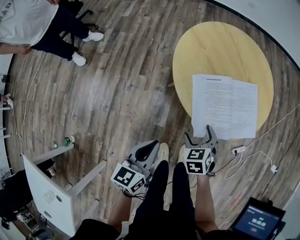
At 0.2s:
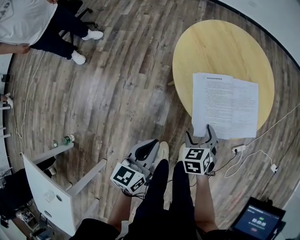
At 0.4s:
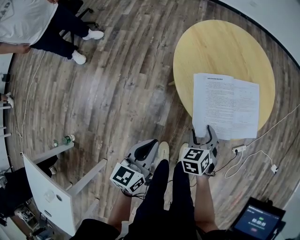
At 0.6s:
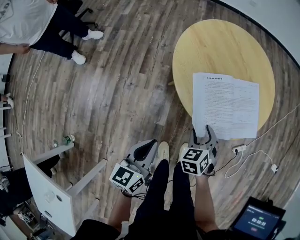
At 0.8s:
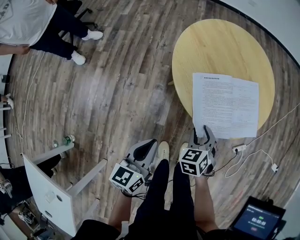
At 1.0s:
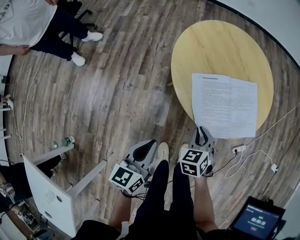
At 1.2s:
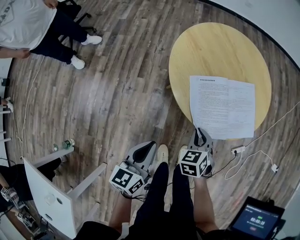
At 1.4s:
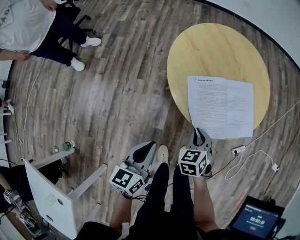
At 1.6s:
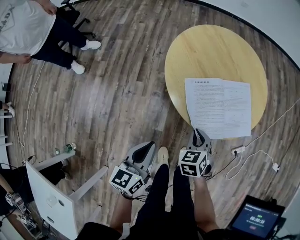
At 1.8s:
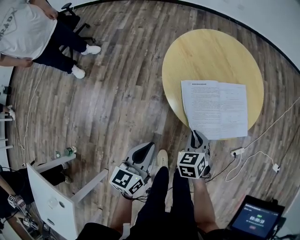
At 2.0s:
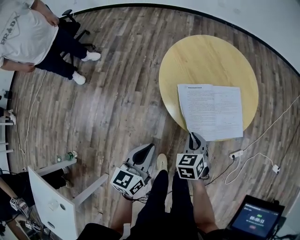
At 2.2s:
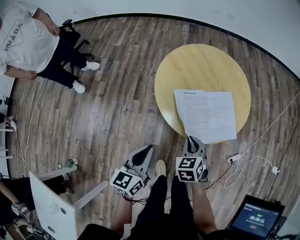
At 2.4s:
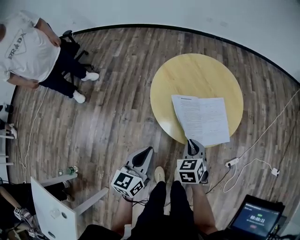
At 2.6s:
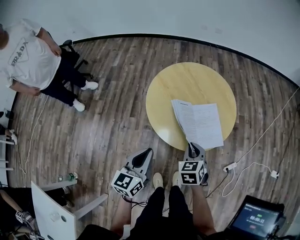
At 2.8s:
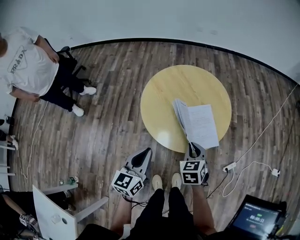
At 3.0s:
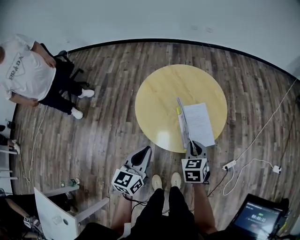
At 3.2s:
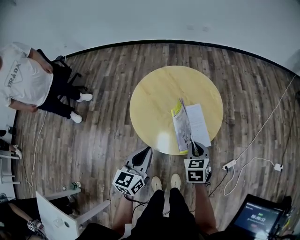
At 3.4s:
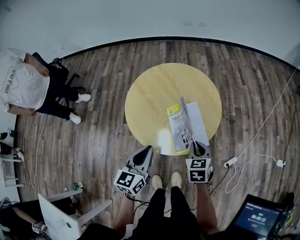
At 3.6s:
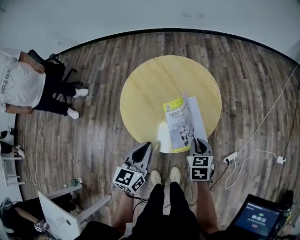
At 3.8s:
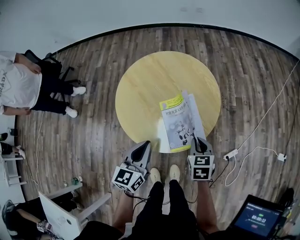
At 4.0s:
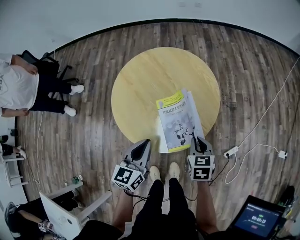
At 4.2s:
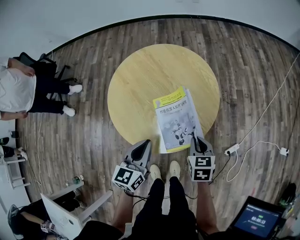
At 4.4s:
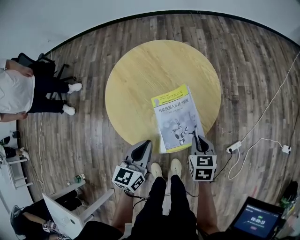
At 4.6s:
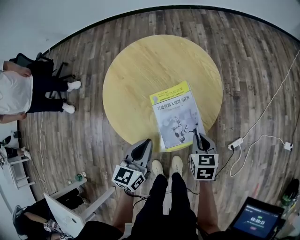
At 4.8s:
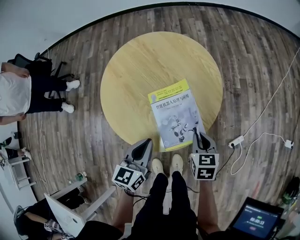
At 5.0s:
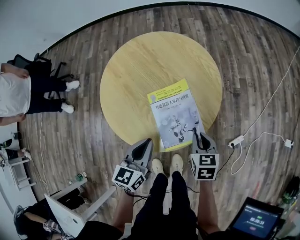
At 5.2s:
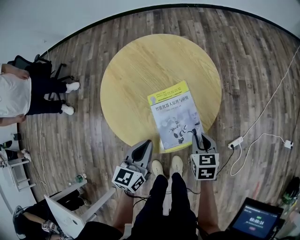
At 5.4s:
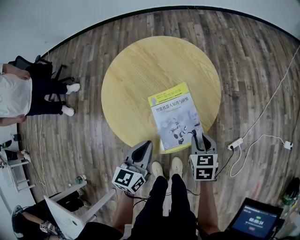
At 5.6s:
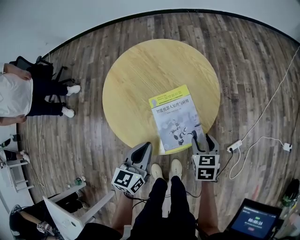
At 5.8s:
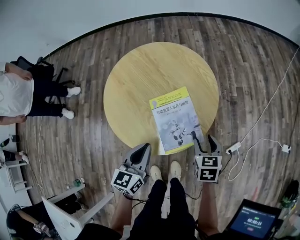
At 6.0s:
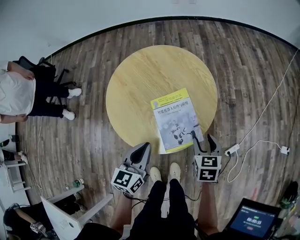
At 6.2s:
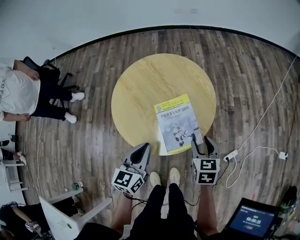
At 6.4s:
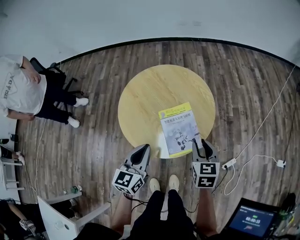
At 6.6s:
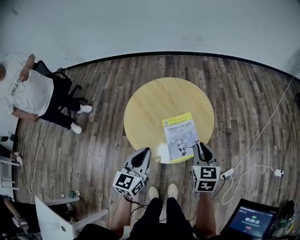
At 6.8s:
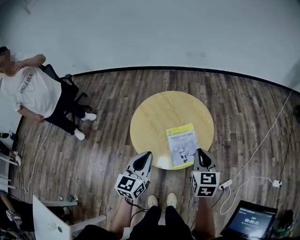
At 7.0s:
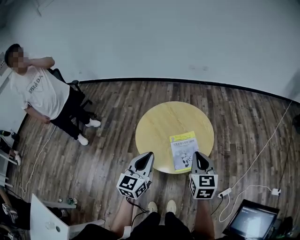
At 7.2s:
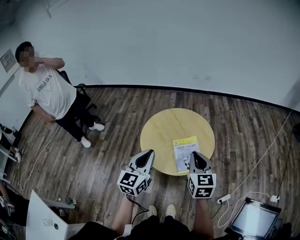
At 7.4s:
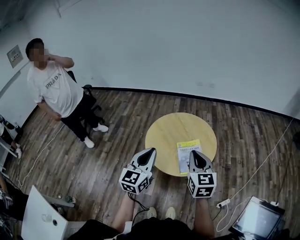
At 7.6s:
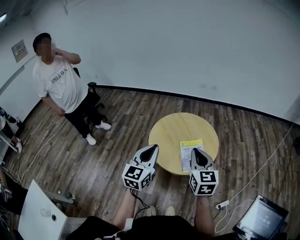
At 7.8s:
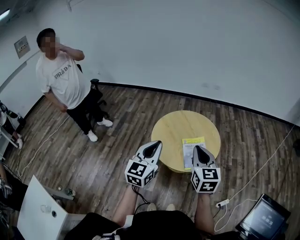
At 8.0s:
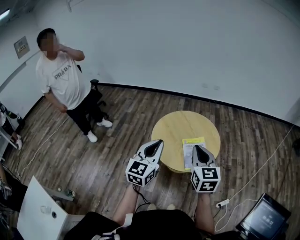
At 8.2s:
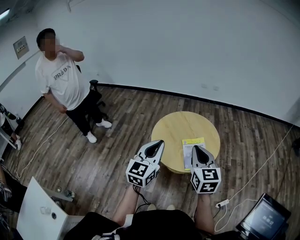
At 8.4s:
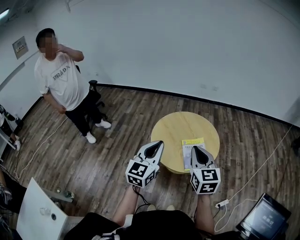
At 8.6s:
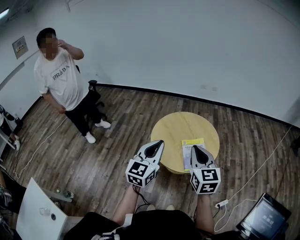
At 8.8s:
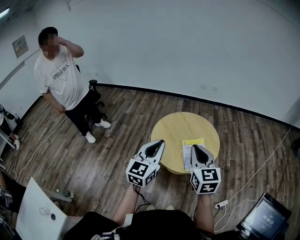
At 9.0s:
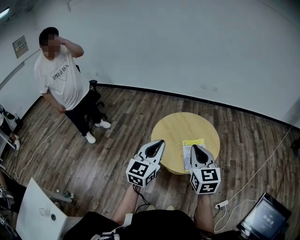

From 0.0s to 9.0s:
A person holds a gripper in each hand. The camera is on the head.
From 0.0s to 1.6s: The right gripper closes up.
From 1.6s to 3.0s: The left gripper heads upward, to the right and forward, covering approximately 20 cm, while the right gripper shifts approximately 20 cm upward and to the right.
From 3.0s to 4.4s: The left gripper heads to the right, downward and forward, covering approximately 15 cm; the right gripper shifts about 15 cm to the right and downward.
From 4.4s to 6.0s: The right gripper opens.
From 6.0s to 7.6s: The left gripper moves upward, approximately 25 cm, and changes its angle by roughly 30 degrees. Meanwhile the right gripper shifts about 40 cm upward and to the left, points its fingers some 40 degrees further upward, and closes.
From 7.6s to 9.0s: The grippers move only a little.

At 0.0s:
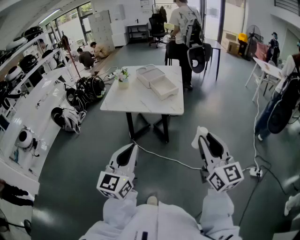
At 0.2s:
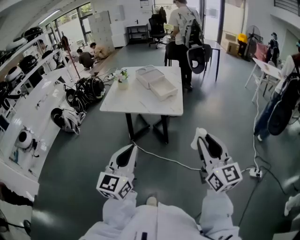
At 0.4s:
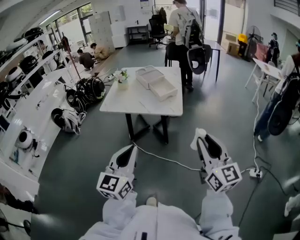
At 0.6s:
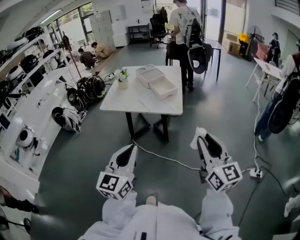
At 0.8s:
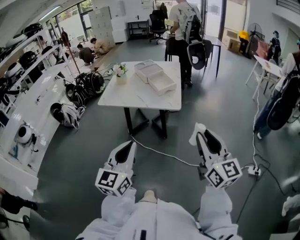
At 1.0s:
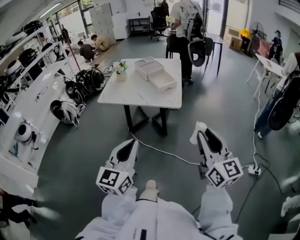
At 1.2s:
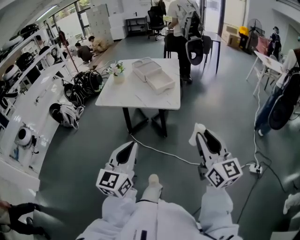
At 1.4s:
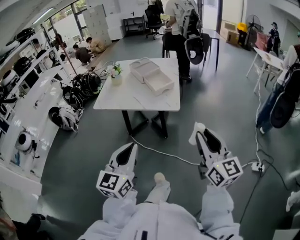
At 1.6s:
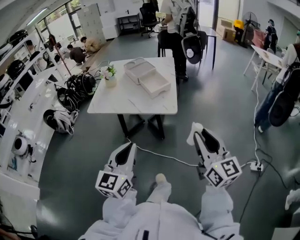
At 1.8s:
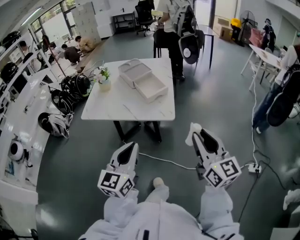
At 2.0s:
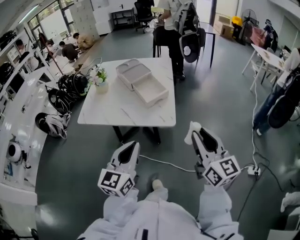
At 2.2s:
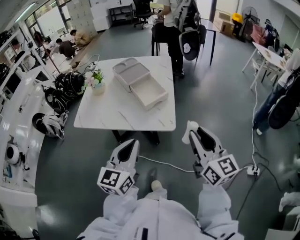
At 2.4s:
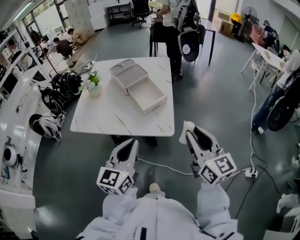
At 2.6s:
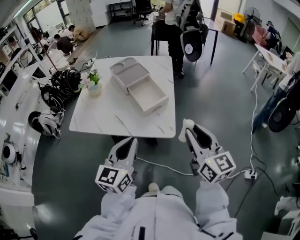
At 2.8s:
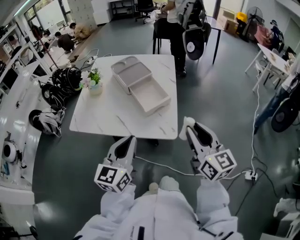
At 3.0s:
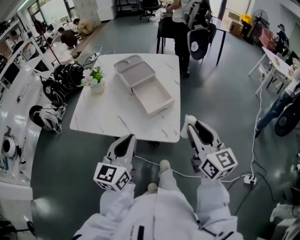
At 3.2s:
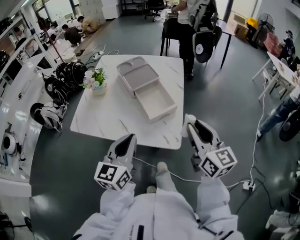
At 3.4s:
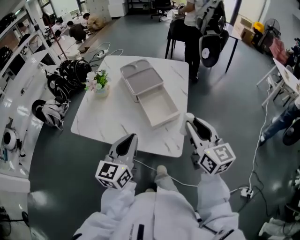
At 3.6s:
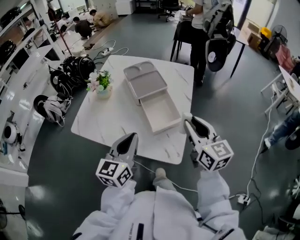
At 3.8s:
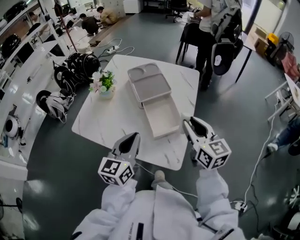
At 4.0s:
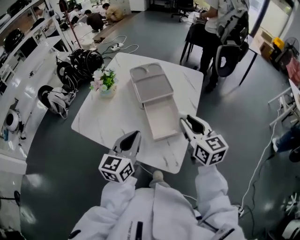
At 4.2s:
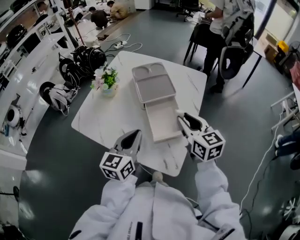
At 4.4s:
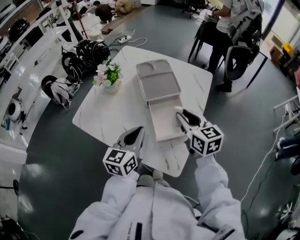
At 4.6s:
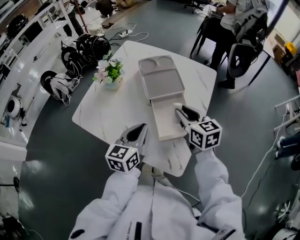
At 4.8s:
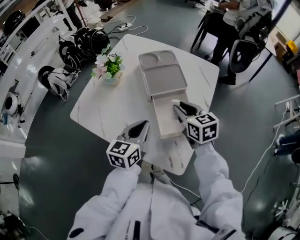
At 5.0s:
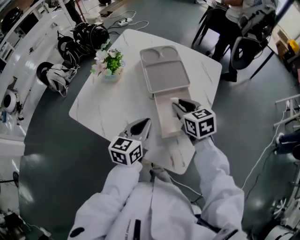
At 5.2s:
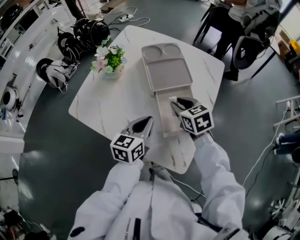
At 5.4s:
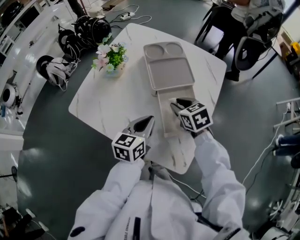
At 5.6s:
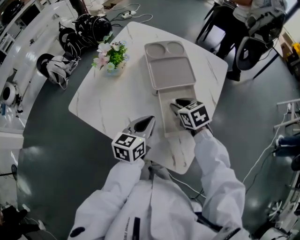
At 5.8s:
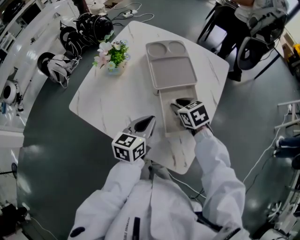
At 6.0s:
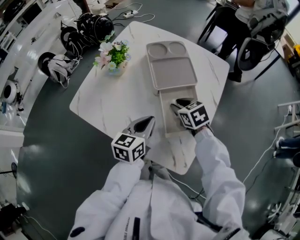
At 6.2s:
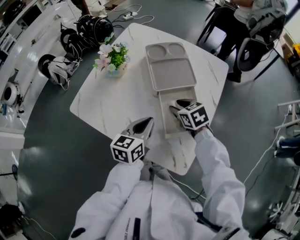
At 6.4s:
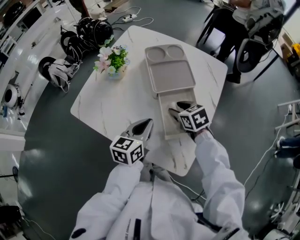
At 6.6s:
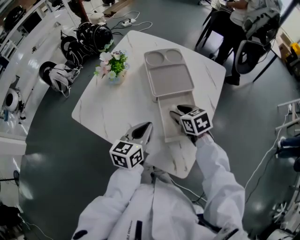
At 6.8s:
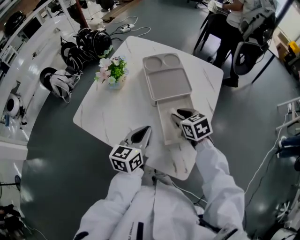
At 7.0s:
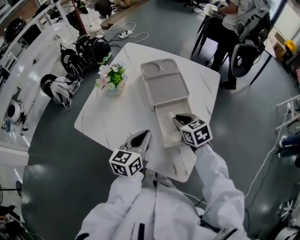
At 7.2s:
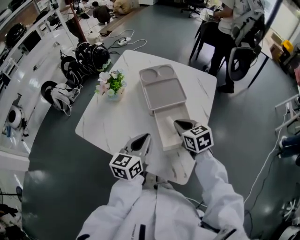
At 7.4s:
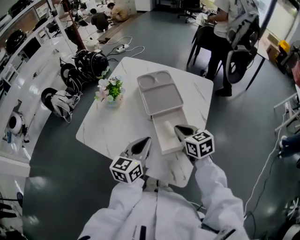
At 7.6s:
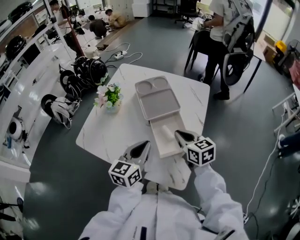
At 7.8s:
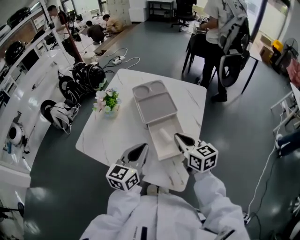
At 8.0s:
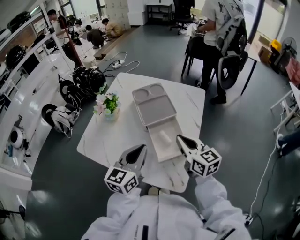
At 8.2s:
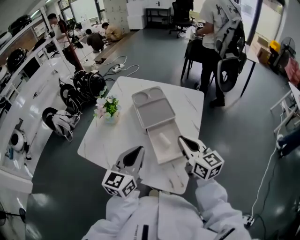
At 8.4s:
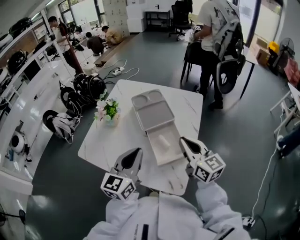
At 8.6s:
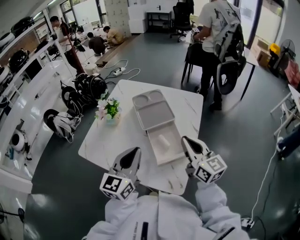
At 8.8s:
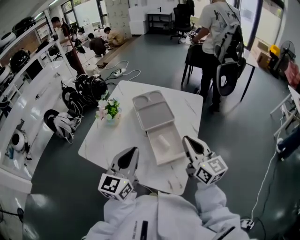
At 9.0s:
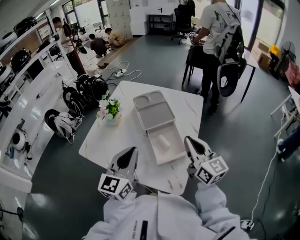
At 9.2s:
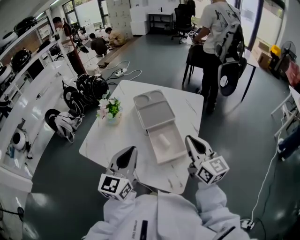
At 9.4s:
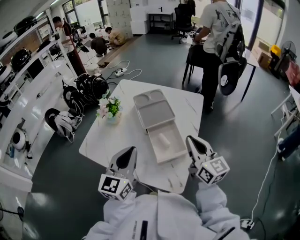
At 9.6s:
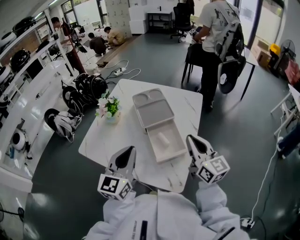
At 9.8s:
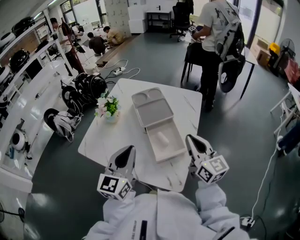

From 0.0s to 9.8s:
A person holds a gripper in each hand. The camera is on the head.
From 0.0s to 1.4s: Both grippers travel together forward, some 5 cm.
From 1.4s to 2.8s: The two grippers go approximately 30 cm forward.
From 2.8s to 4.2s: Both grippers travel together forward, approximately 25 cm. The right gripper changes its angle by about 30 degrees.
From 4.2s to 5.6s: The right gripper is displaced downward, forward and to the left by approximately 20 cm, and tips its fingers downward by about 30 degrees. The left gripper is displaced downward and forward by some 10 cm.
From 5.6s to 7.0s: The grippers stay close to where they were, moving slightly.
From 7.0s to 8.4s: The left gripper shifts approximately 15 cm upward, and changes its angle by roughly 20 degrees, while the right gripper shifts roughly 20 cm upward and backward, and points its fingers approximately 40 degrees further upward.
From 8.4s to 9.8s: The grippers move only a little.

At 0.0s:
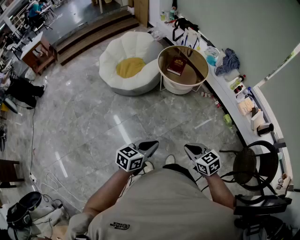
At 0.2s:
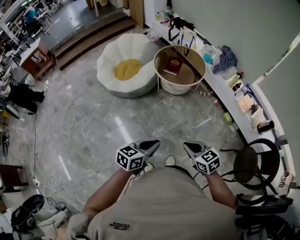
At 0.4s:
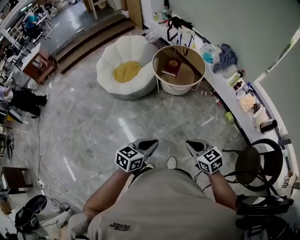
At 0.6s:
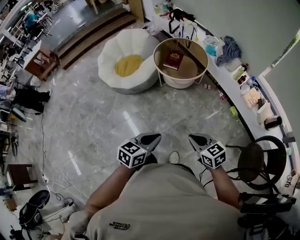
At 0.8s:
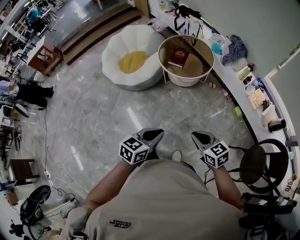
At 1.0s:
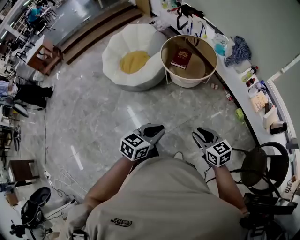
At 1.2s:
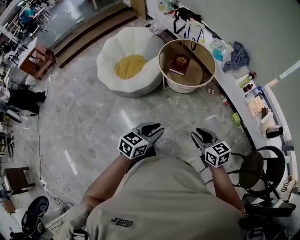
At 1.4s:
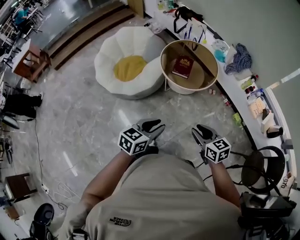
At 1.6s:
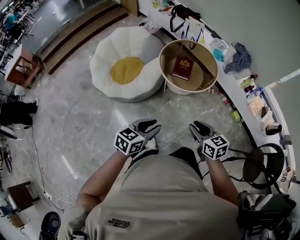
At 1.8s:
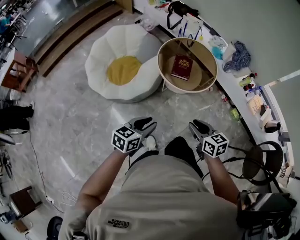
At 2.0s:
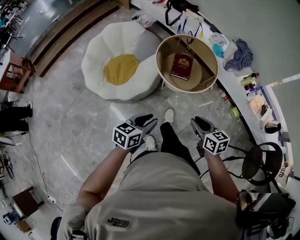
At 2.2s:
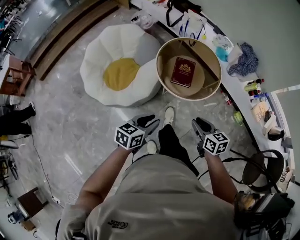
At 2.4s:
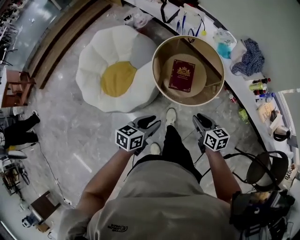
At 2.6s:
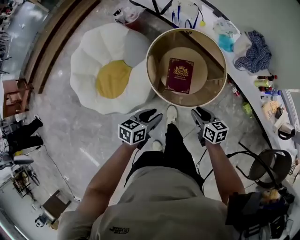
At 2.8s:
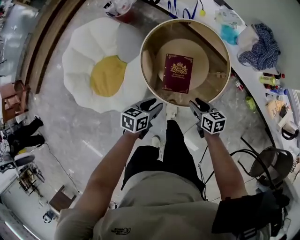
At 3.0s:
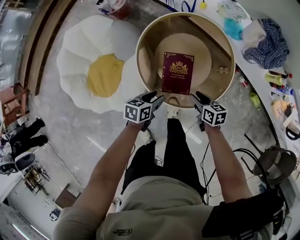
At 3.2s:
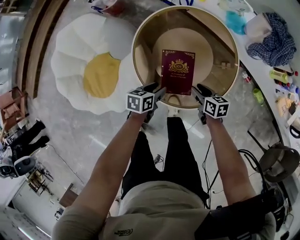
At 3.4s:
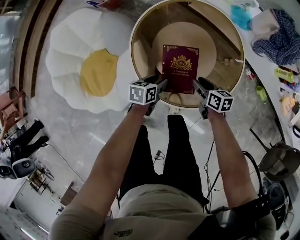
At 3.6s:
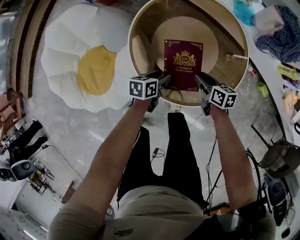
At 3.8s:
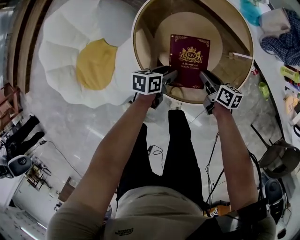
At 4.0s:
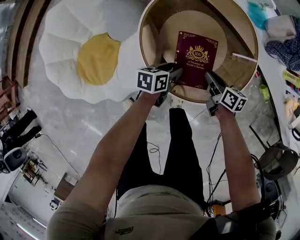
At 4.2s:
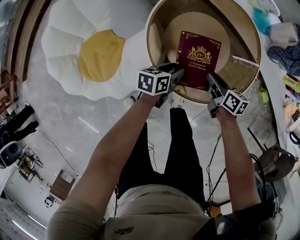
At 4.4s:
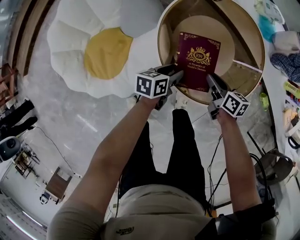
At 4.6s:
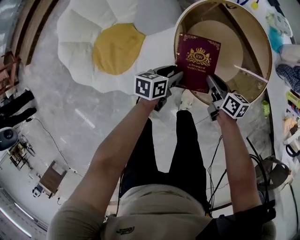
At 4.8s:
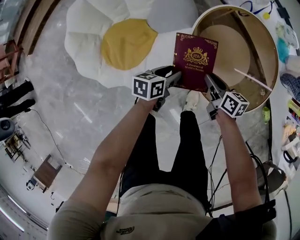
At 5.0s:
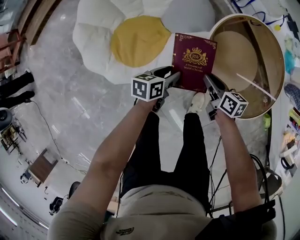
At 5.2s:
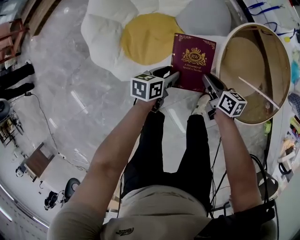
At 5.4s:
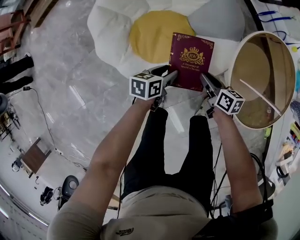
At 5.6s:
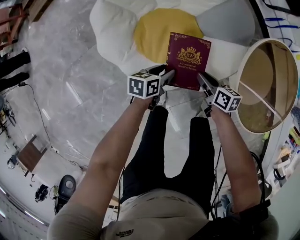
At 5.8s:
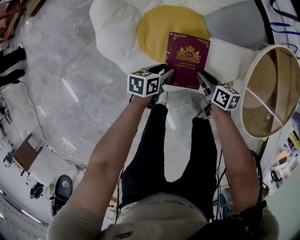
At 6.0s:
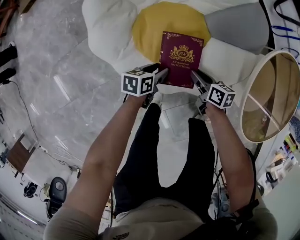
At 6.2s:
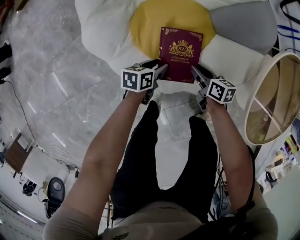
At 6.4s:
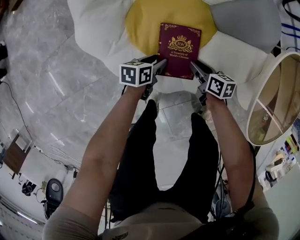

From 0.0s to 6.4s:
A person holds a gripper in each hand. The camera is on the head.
From 0.0s to 1.6s: The two grippers go roughly 30 cm forward. The right gripper rotates about 20 degrees, and opens up. Meanwhile the left gripper opens its fingers.
From 1.6s to 3.2s: Both grippers are carried forward, approximately 50 cm. Both grippers travel together downward, some 40 cm. The left gripper changes its angle by some 30 degrees, while the right gripper turns by roughly 30 degrees.
From 3.2s to 4.8s: Both grippers move to the left, roughly 20 cm.
From 4.8s to 6.4s: The grippers both shift to the left and downward by about 40 cm. The right gripper rotates roughly 30 degrees.
